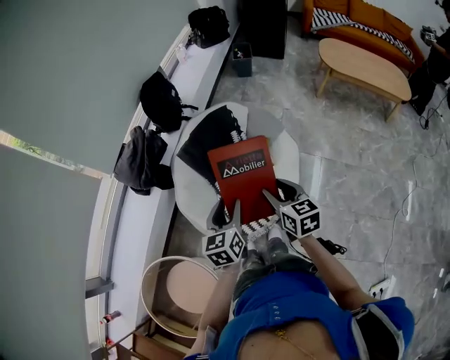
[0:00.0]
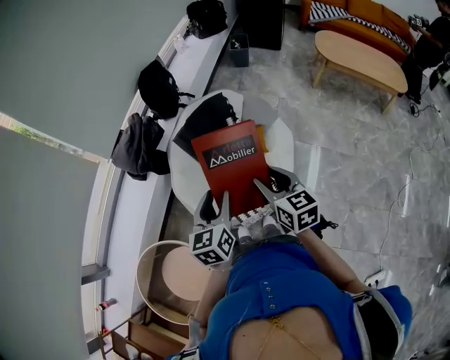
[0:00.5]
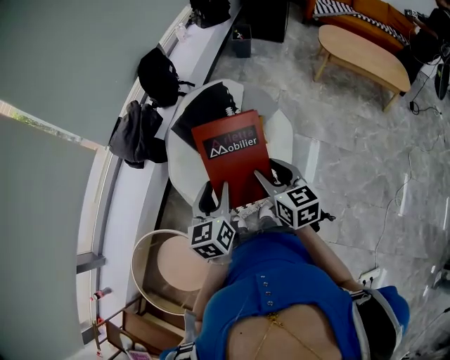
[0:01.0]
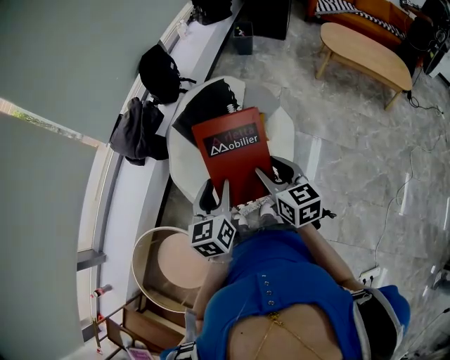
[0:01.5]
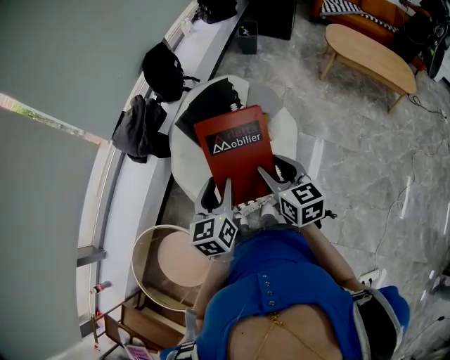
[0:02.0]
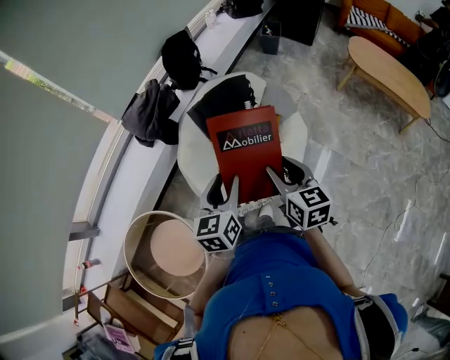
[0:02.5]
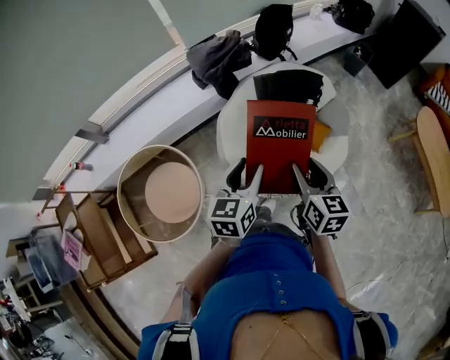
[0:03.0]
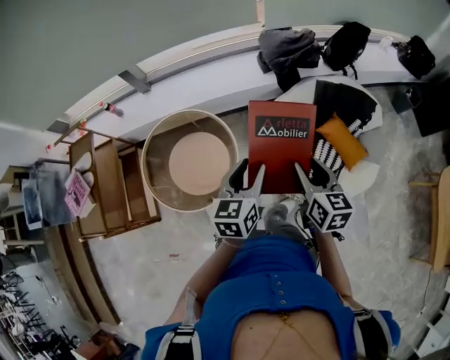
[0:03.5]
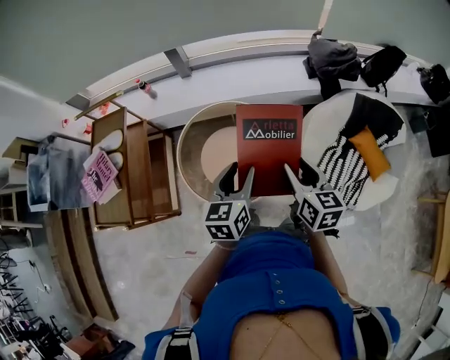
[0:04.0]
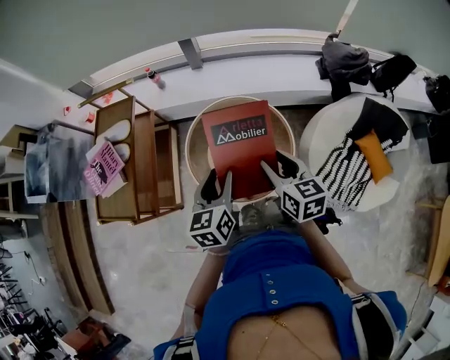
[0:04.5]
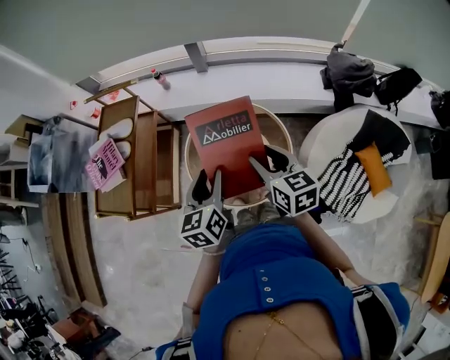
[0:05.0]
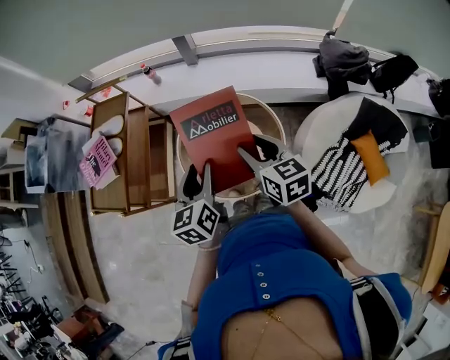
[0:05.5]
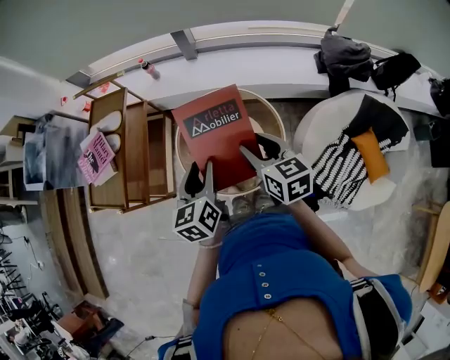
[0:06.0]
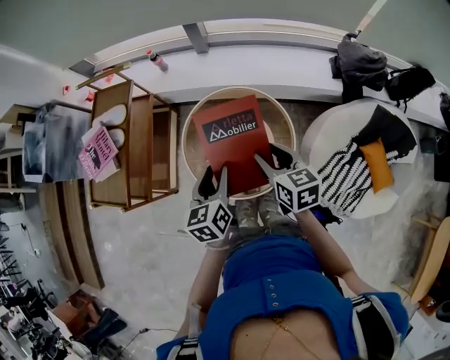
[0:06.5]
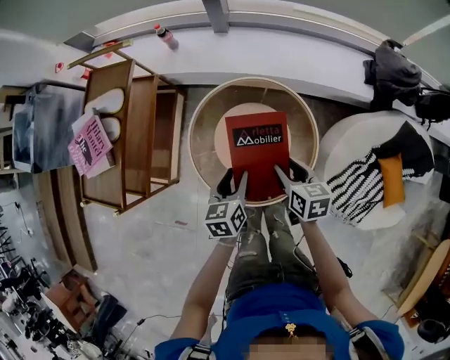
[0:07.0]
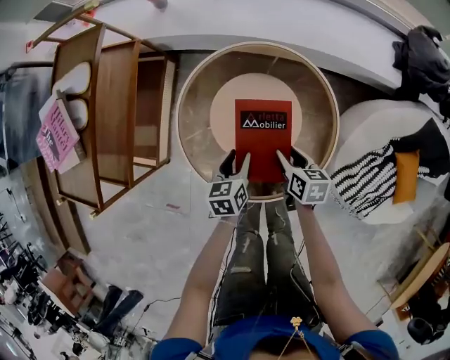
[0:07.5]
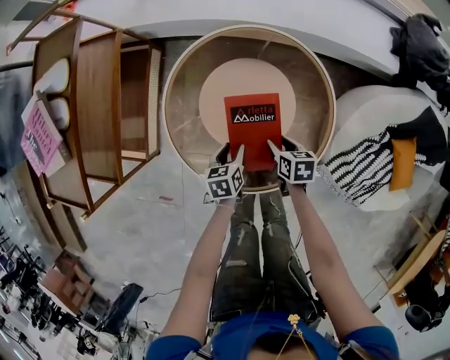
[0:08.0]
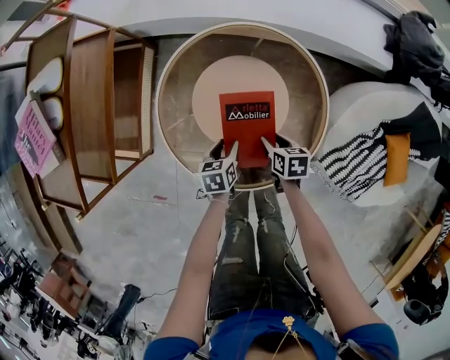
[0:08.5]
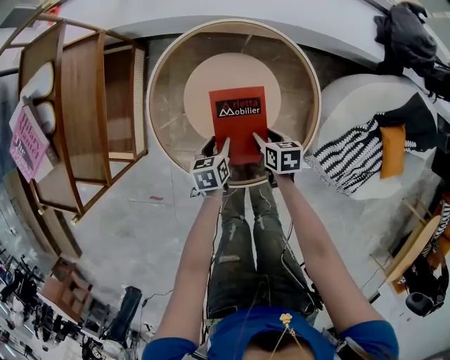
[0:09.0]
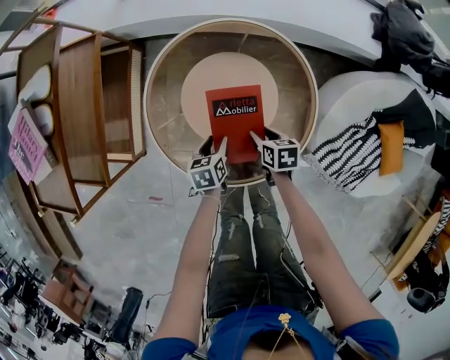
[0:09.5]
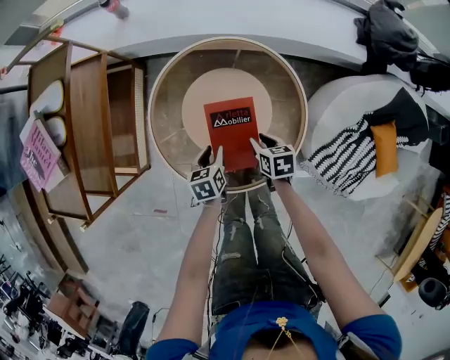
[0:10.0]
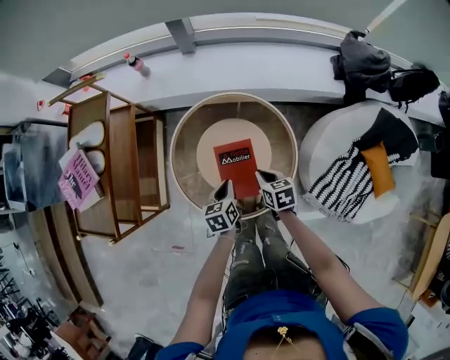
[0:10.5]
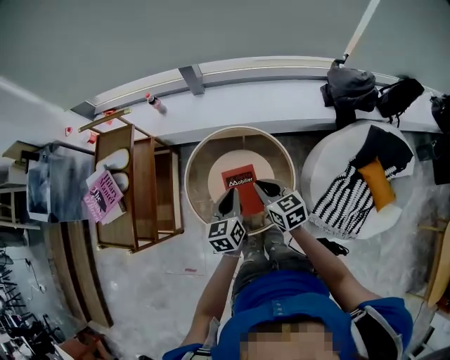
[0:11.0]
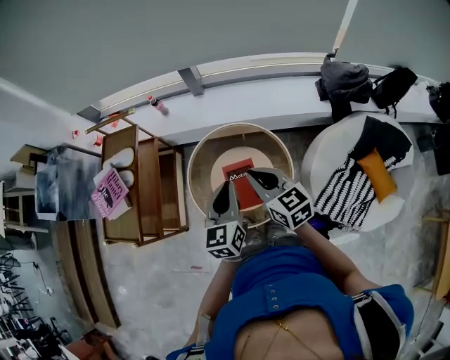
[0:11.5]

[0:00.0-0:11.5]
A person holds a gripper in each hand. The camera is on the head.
0:00.0 to 0:02.0: The left gripper heads backward and upward, covering roughly 10 cm. Meanwhile the right gripper is displaced upward by approximately 5 cm.
0:02.0 to 0:04.0: The pair of grippers is taken about 60 cm. The right gripper swivels roughly 50 degrees. Meanwhile the left gripper swivels some 50 degrees.
0:04.0 to 0:06.0: The right gripper is displaced to the left and forward by some 15 cm, and changes its angle by roughly 20 degrees; the left gripper is displaced to the left by about 10 cm, and turns by about 20 degrees.
0:06.0 to 0:07.5: The two grippers go some 40 cm downward. The right gripper turns by approximately 30 degrees. Meanwhile the left gripper rotates about 20 degrees.
0:07.5 to 0:09.5: The grippers both shift downward by roughly 10 cm.
0:09.5 to 0:11.5: The grippers both shift upward by roughly 50 cm. The left gripper tilts its fingers about 40 degrees upward, and closes its fingers, while the right gripper angles its fingers upward, by about 40 degrees, and closes its fingers.

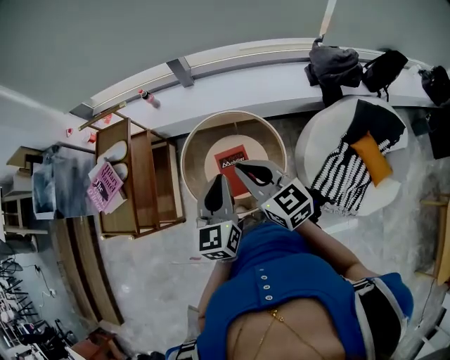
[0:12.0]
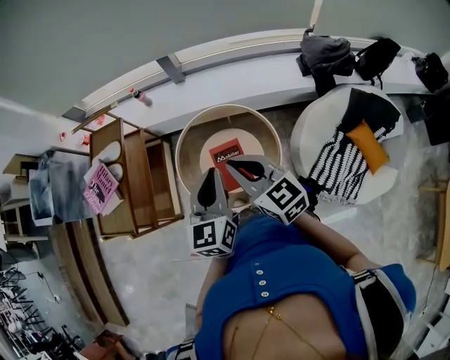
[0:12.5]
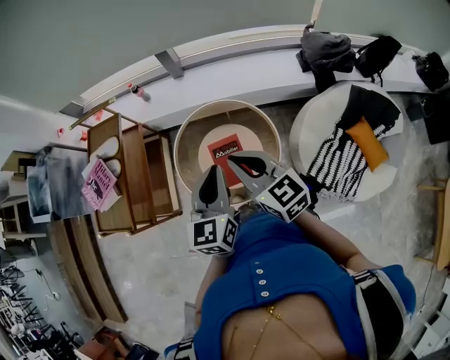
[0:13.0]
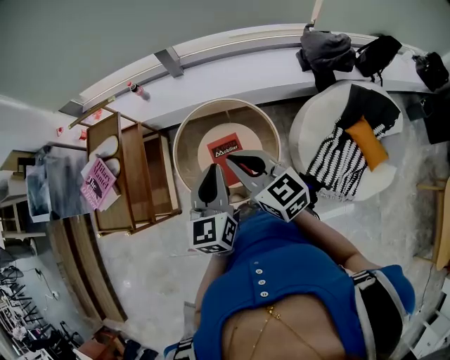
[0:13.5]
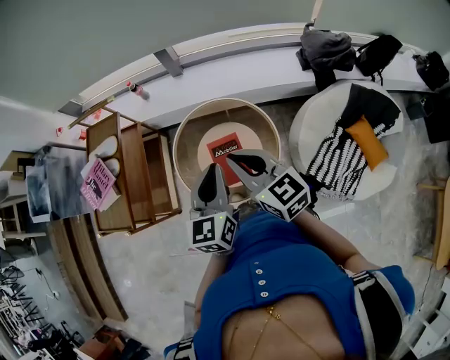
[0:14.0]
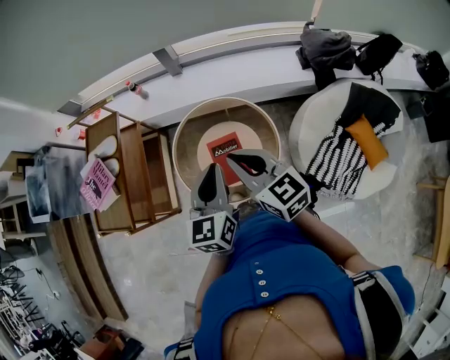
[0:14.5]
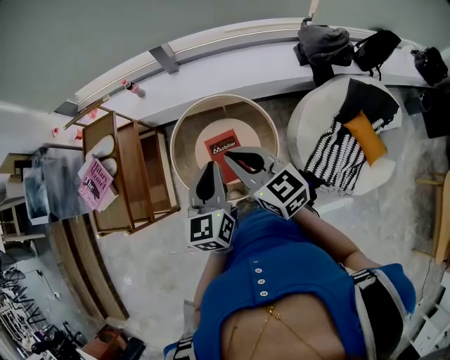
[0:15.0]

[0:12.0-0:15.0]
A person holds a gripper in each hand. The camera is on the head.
0:12.0 to 0:13.5: Both grippers stay about where they are.
0:13.5 to 0:15.0: The grippers make only small movements.

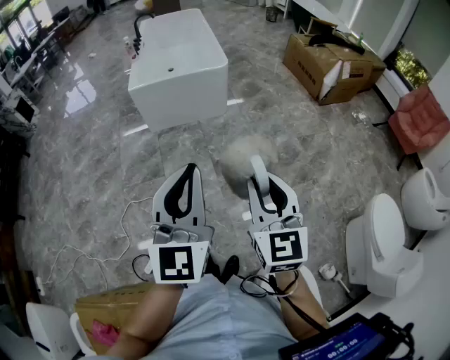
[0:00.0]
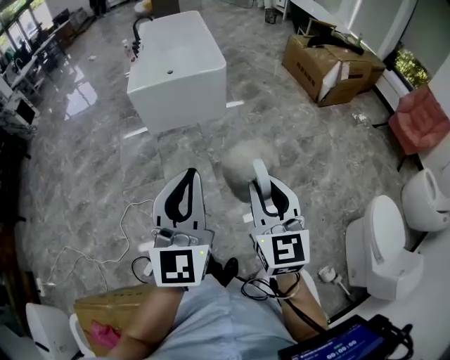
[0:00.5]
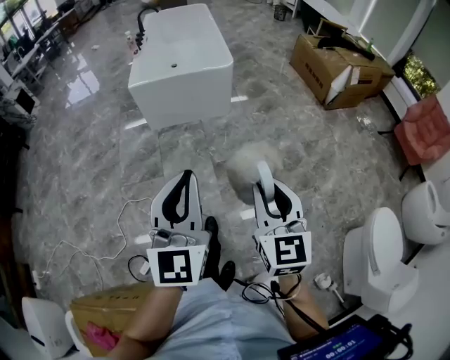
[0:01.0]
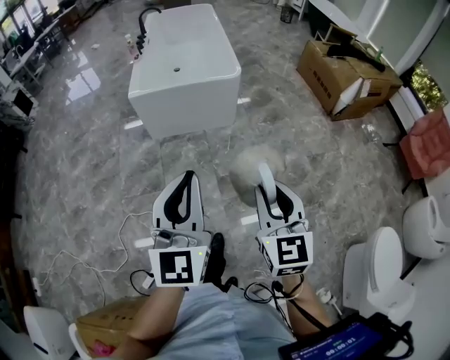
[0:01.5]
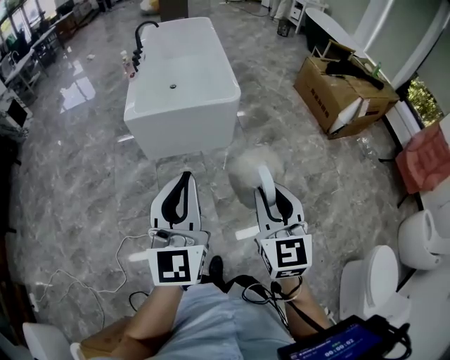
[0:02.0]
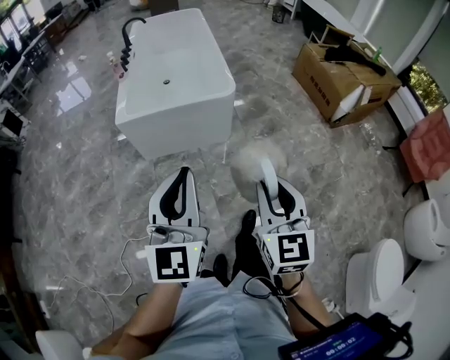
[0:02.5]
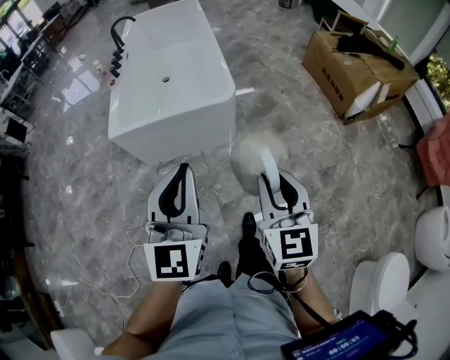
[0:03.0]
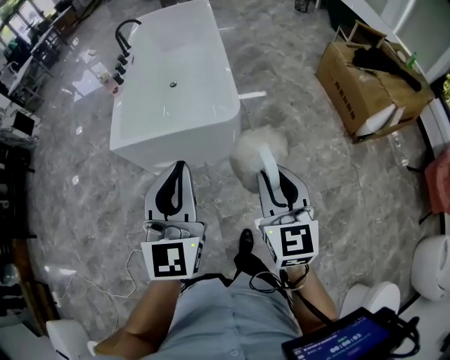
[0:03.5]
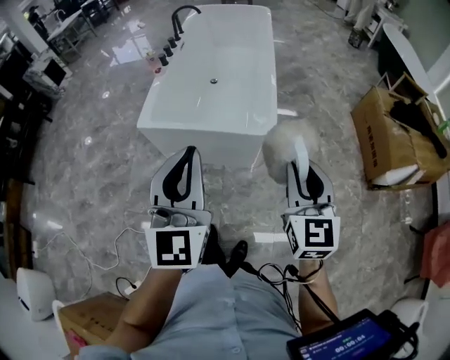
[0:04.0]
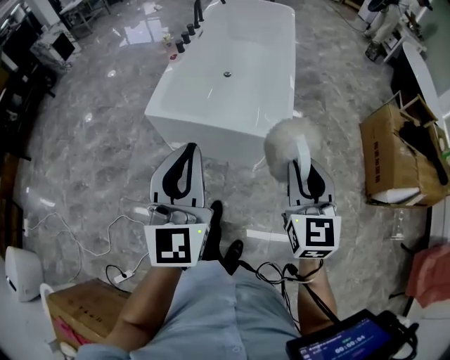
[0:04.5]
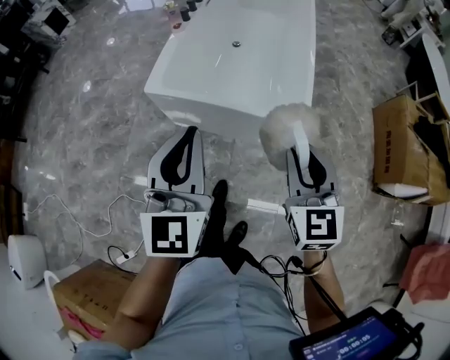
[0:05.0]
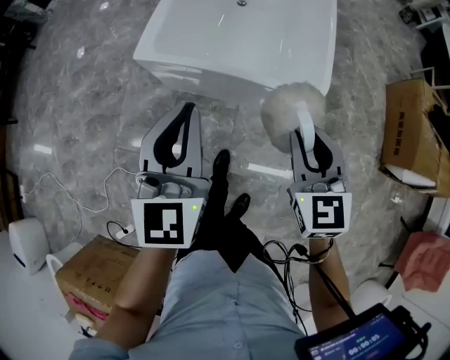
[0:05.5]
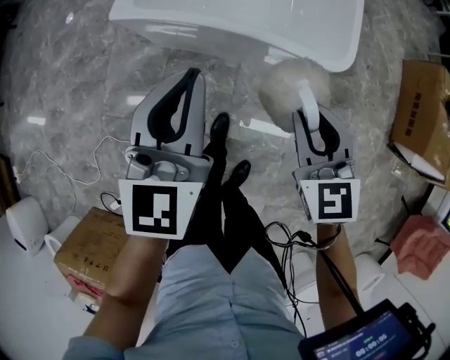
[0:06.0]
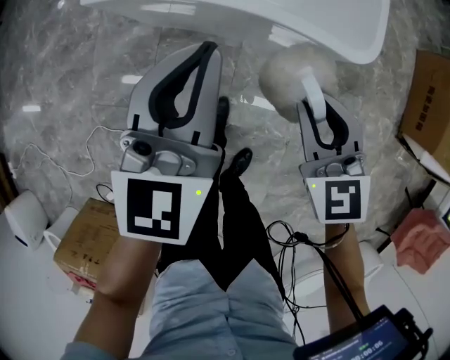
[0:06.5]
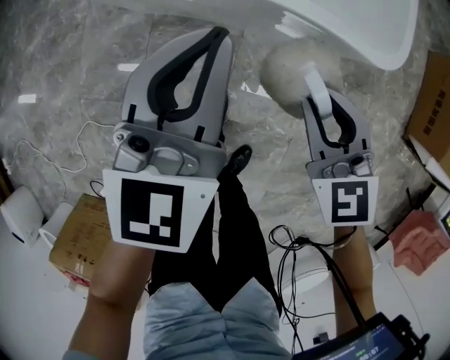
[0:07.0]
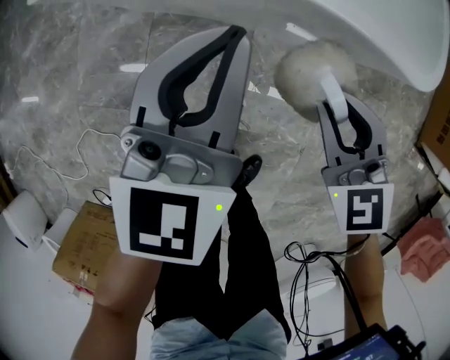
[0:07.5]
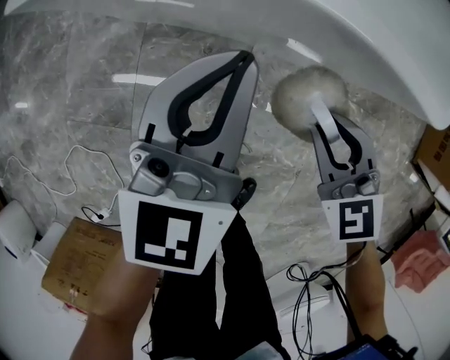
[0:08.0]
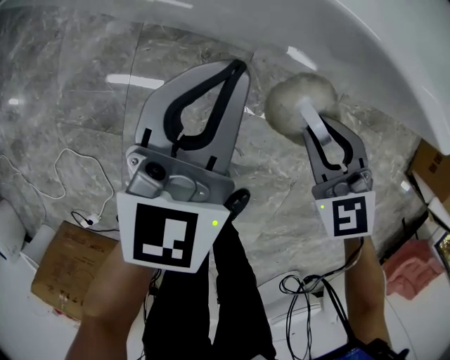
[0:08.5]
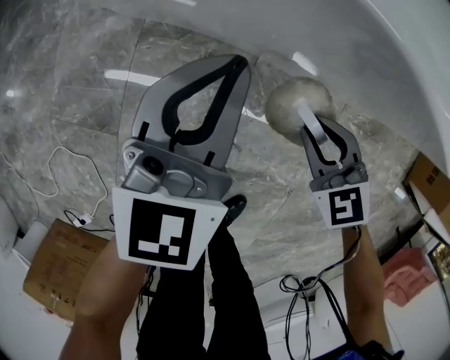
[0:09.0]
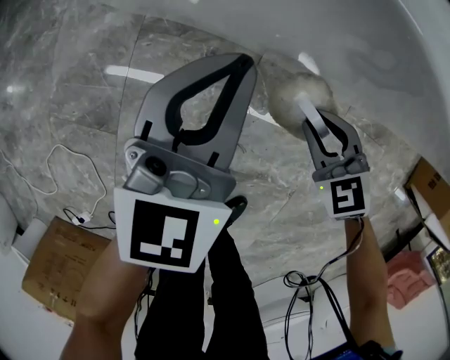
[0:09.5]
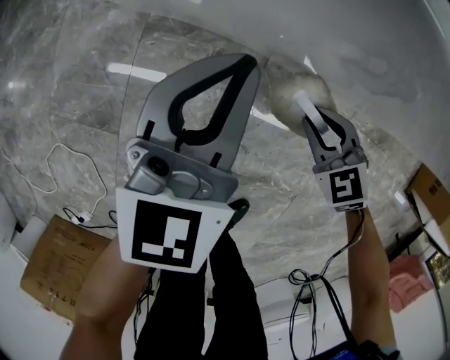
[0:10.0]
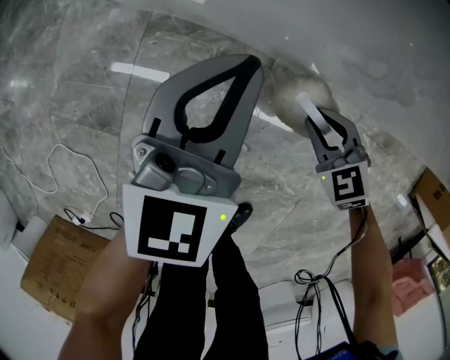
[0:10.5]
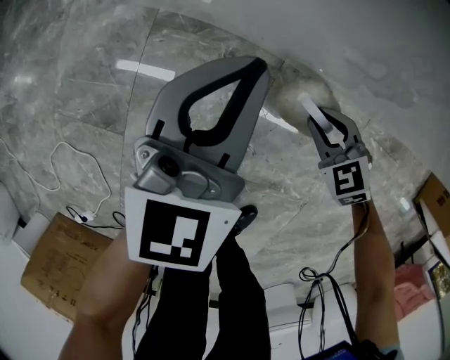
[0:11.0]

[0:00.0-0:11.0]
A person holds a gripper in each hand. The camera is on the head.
0:00.0 to 0:02.0: Both grippers travel together forward, roughly 30 cm.
0:02.0 to 0:03.5: The two grippers go approximately 35 cm forward and to the right.
0:03.5 to 0:05.5: The left gripper travels forward, to the left and downward by some 30 cm, and changes its angle by about 20 degrees. Meanwhile the right gripper travels forward, downward and to the left by some 30 cm, and turns by roughly 30 degrees.
0:05.5 to 0:07.5: Both grippers move downward, some 35 cm.
0:07.5 to 0:09.0: The two grippers go roughly 15 cm downward.
0:09.0 to 0:11.0: The left gripper shifts roughly 10 cm downward, while the right gripper moves downward, some 15 cm.

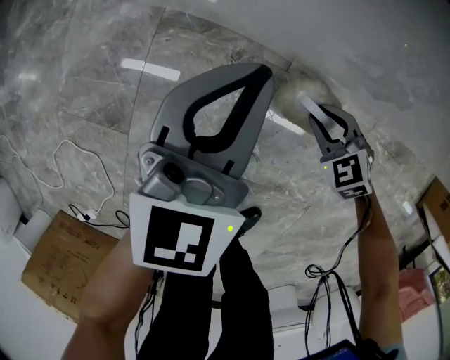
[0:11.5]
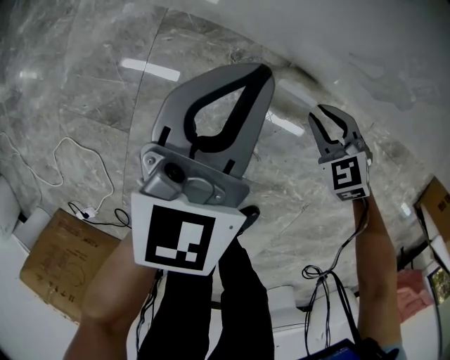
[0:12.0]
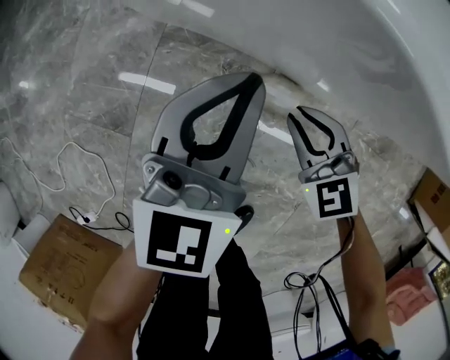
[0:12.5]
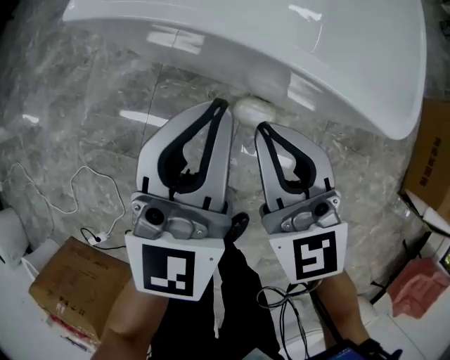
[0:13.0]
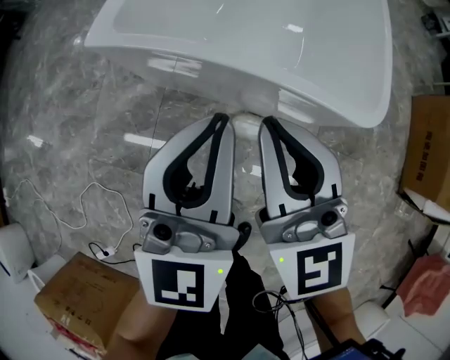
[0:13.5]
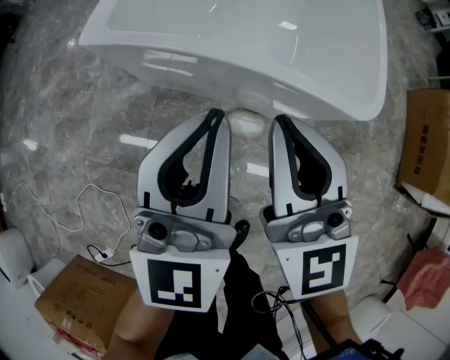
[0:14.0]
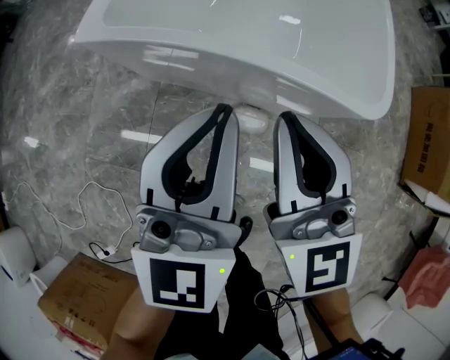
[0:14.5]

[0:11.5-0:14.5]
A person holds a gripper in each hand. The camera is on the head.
0:11.5 to 0:13.0: The left gripper goes about 25 cm upward; the right gripper goes about 40 cm upward, angles its fingers upward, by about 40 degrees, and closes its fingers.
0:13.0 to 0:14.5: The two grippers go some 10 cm upward.
